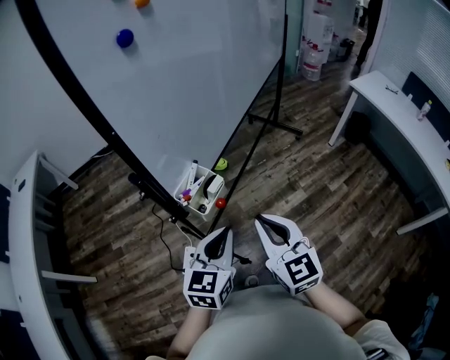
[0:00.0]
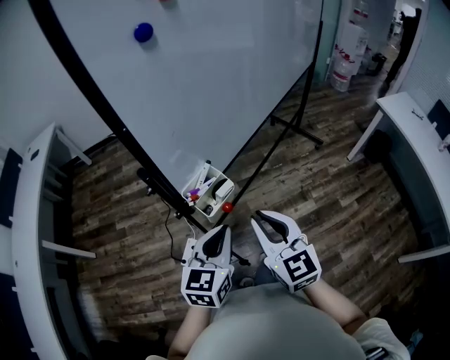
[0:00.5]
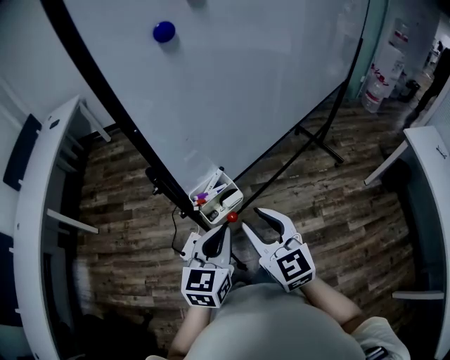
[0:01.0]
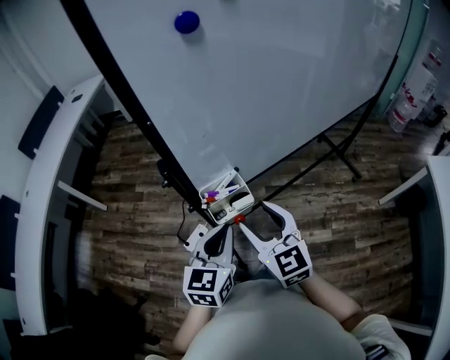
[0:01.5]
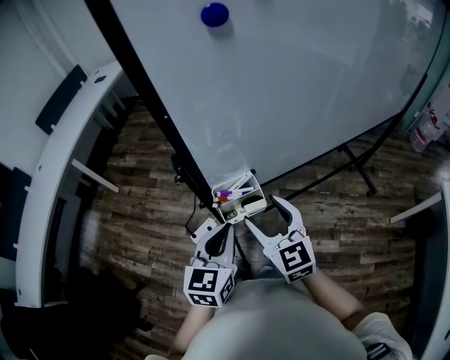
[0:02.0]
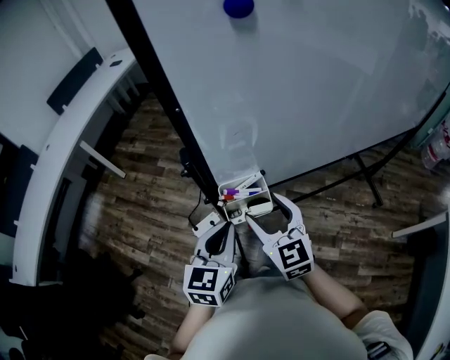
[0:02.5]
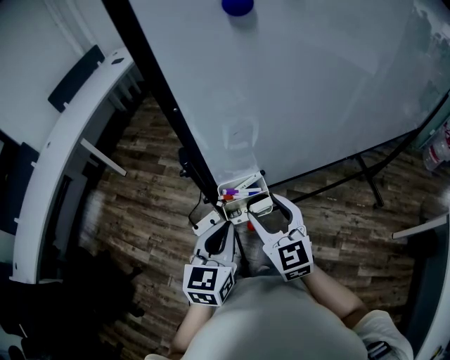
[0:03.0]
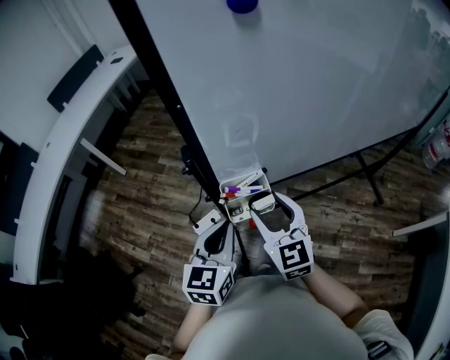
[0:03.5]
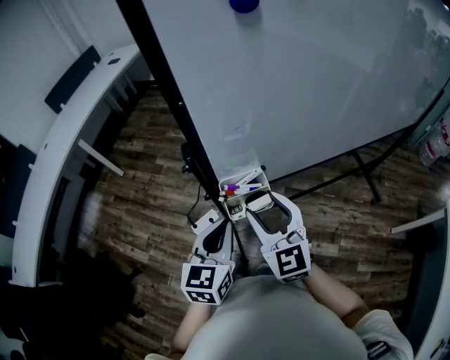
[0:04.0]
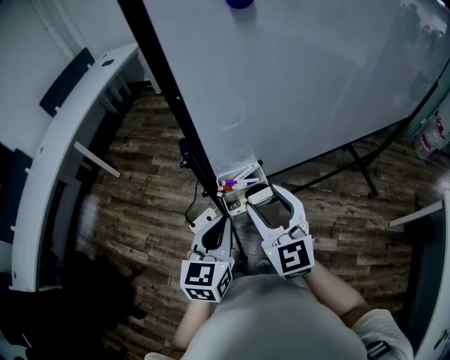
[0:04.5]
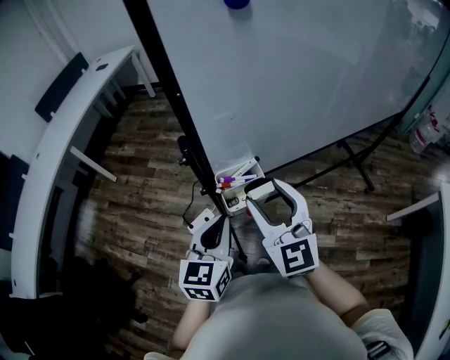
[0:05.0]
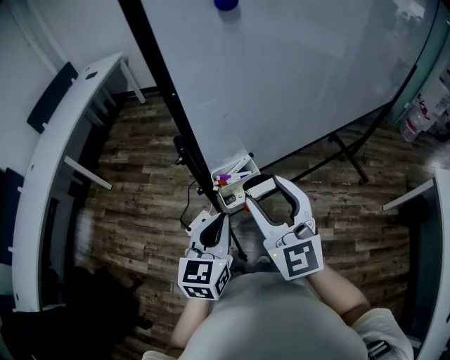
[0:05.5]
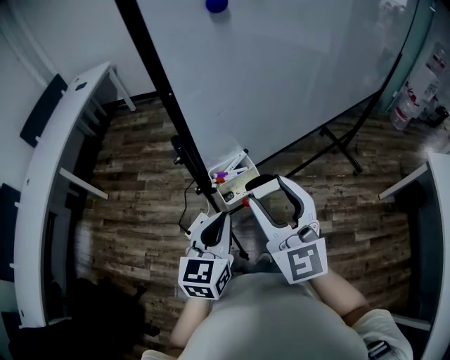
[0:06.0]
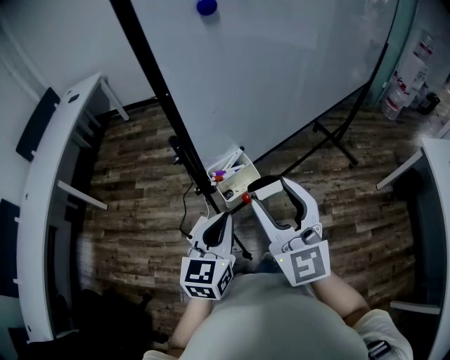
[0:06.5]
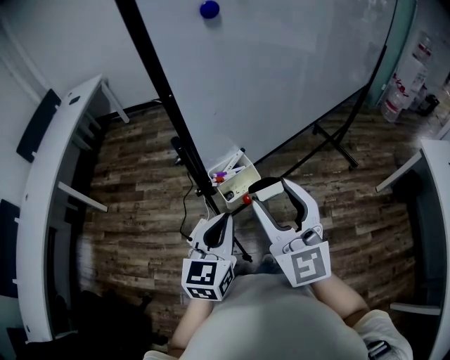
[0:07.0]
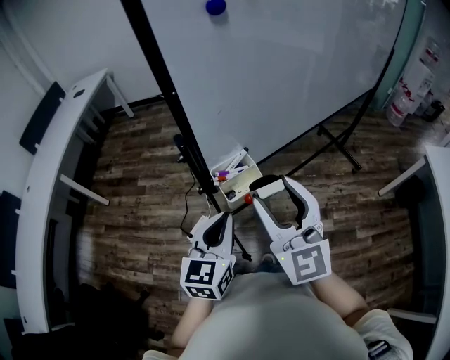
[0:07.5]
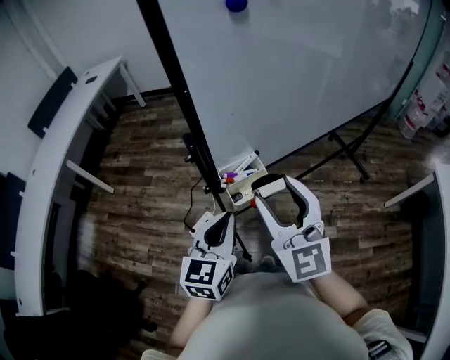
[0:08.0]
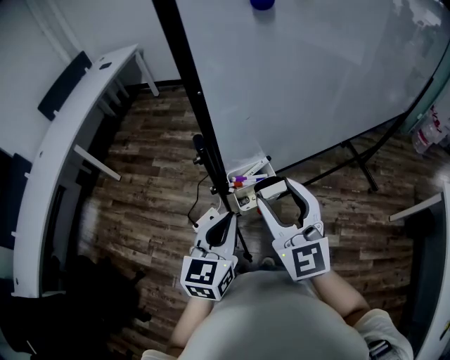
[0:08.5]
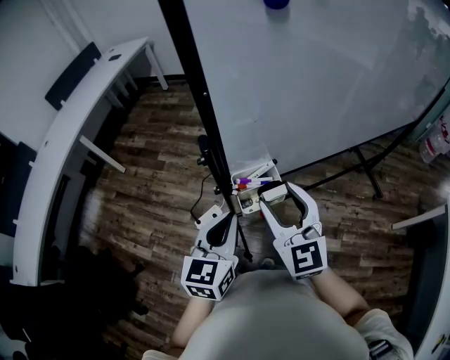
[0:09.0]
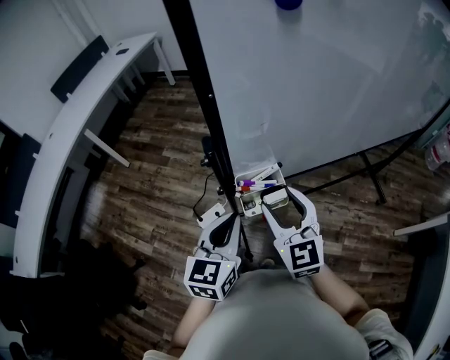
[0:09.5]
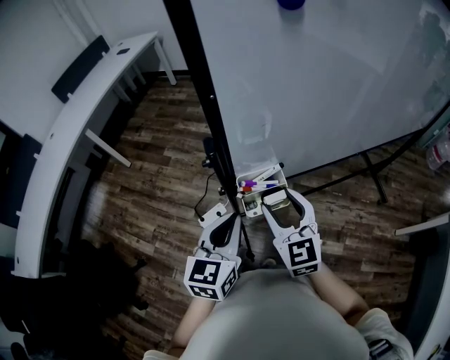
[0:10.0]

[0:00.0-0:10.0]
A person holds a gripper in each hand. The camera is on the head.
0:00.0 to 0:02.0: The left gripper moves some 10 cm, and changes its angle by roughly 40 degrees; the right gripper moves roughly 15 cm, rotates roughly 40 degrees, and opens its fingers.
0:02.0 to 0:04.0: The grippers move only a little.
0:04.0 to 0:06.0: The right gripper goes some 10 cm upward and backward.
0:06.0 to 0:08.0: The grippers make only small movements.
0:08.0 to 0:10.0: The right gripper heads downward and forward, covering approximately 15 cm, and turns by about 20 degrees.

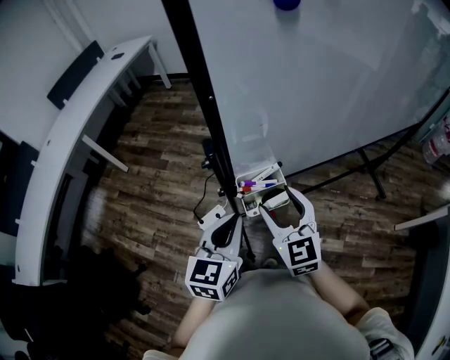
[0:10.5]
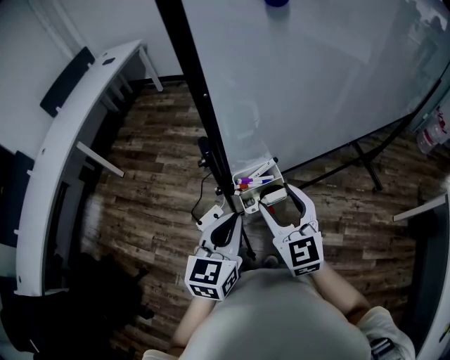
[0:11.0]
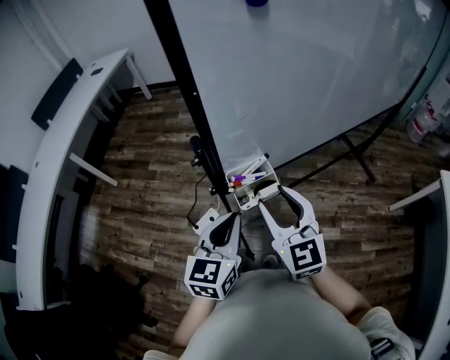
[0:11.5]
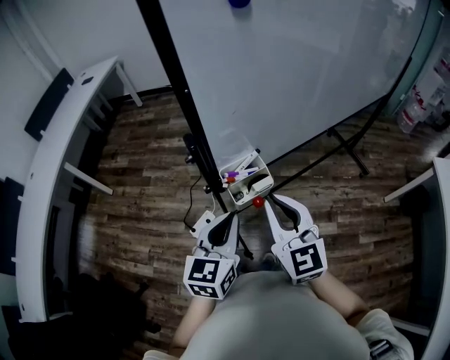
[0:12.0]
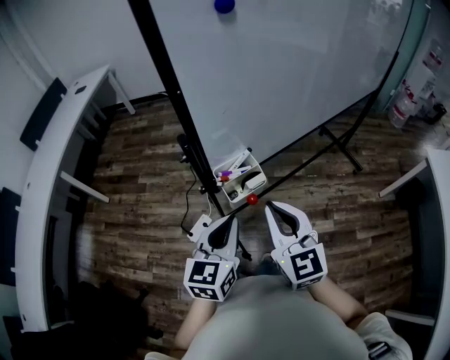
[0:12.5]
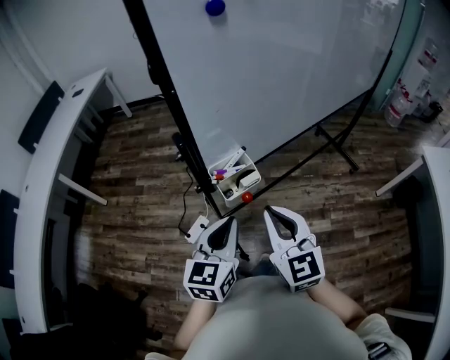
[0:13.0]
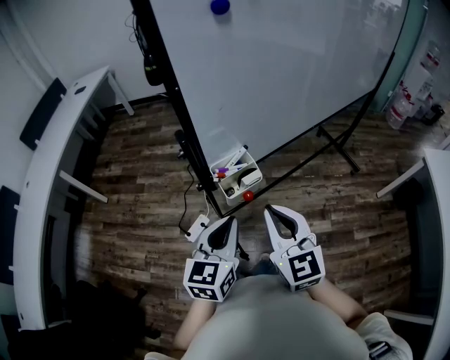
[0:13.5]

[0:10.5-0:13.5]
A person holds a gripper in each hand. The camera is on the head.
0:10.5 to 0:12.0: The right gripper shifts some 10 cm backward and upward, and closes up.
0:12.0 to 0:13.5: The right gripper moves approximately 5 cm.

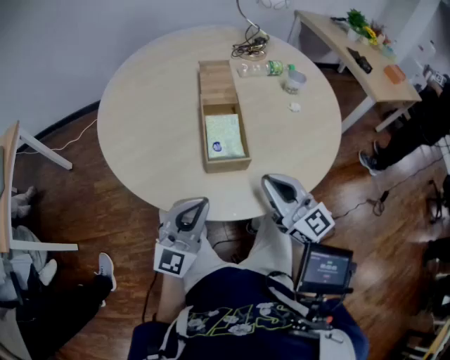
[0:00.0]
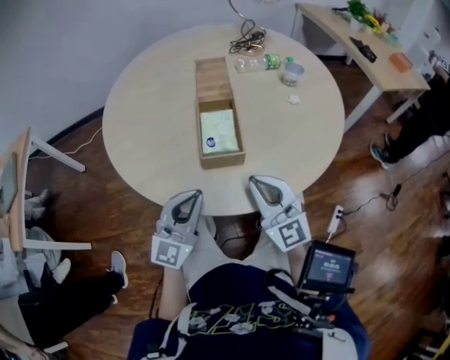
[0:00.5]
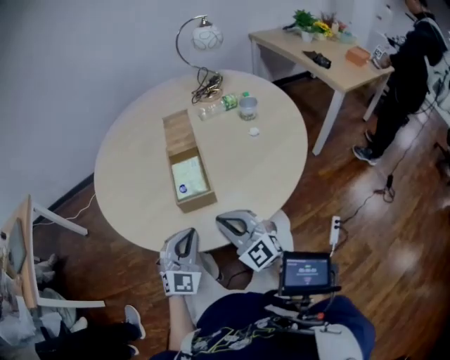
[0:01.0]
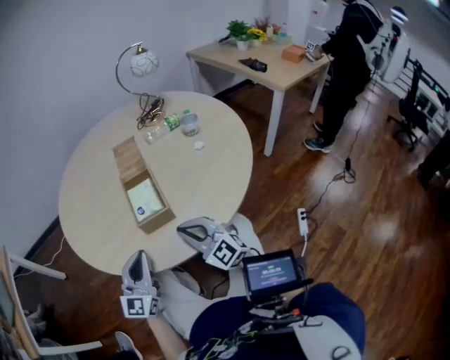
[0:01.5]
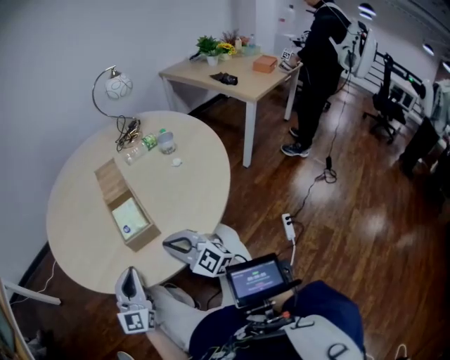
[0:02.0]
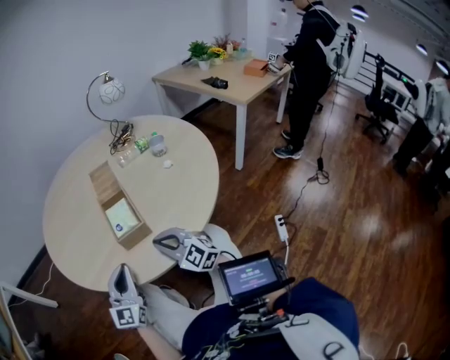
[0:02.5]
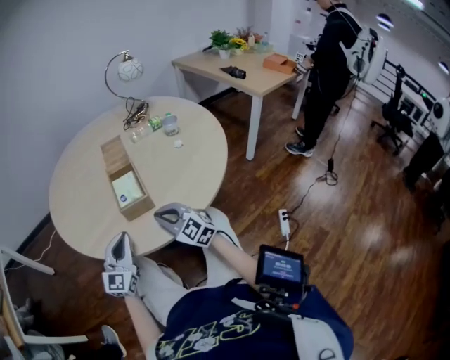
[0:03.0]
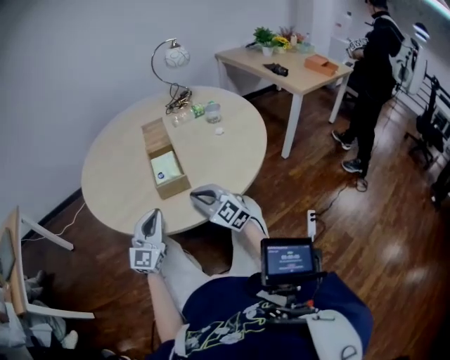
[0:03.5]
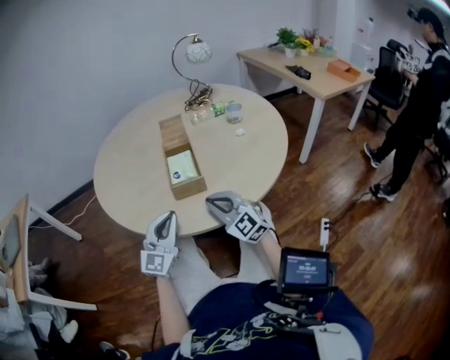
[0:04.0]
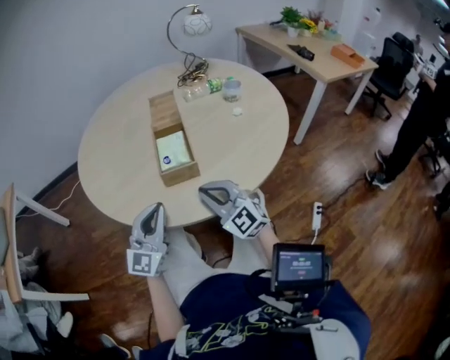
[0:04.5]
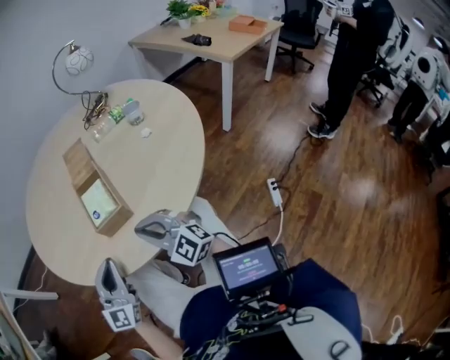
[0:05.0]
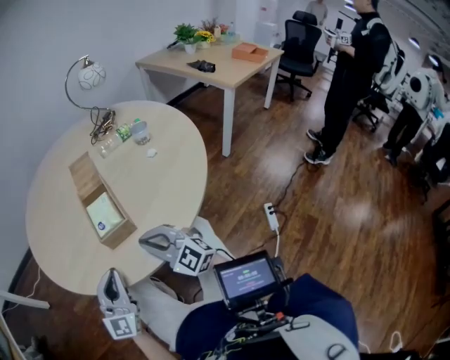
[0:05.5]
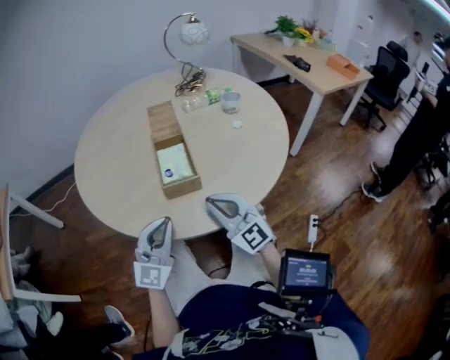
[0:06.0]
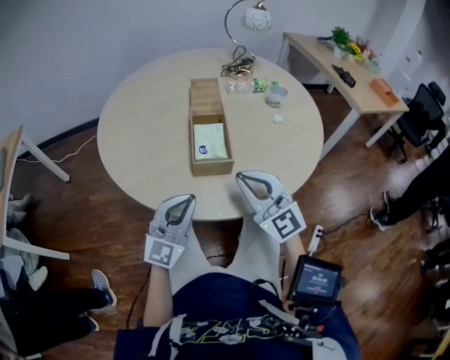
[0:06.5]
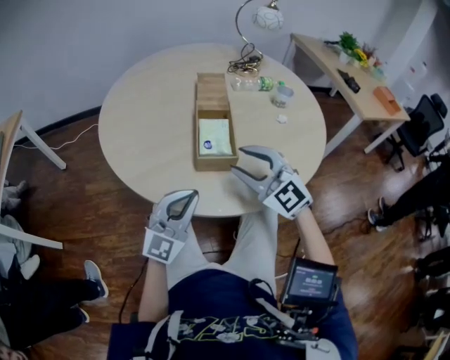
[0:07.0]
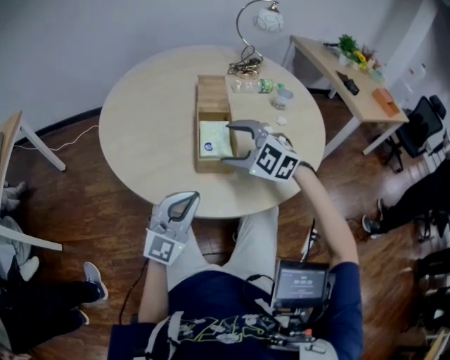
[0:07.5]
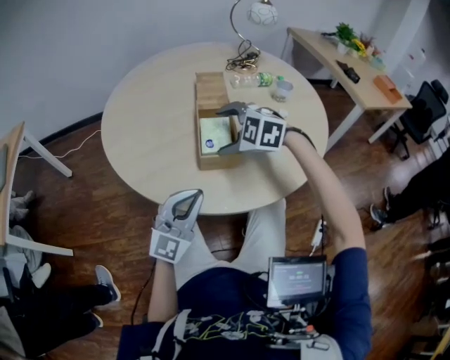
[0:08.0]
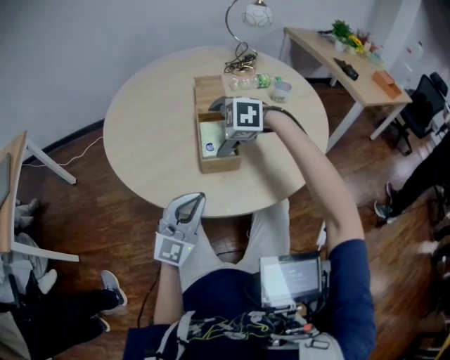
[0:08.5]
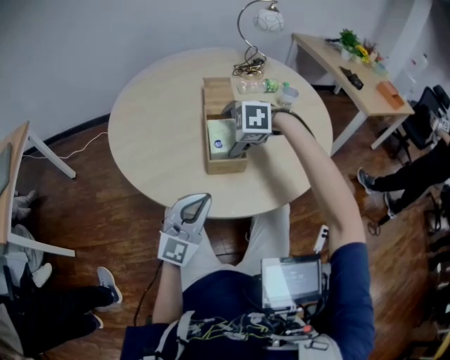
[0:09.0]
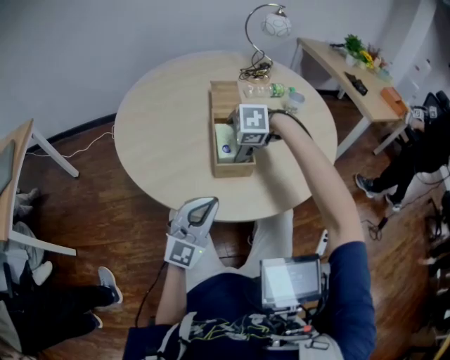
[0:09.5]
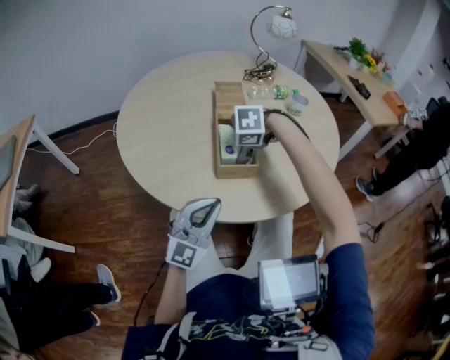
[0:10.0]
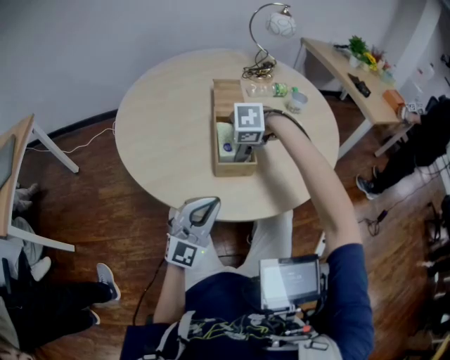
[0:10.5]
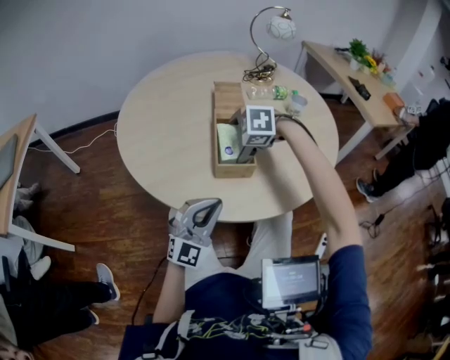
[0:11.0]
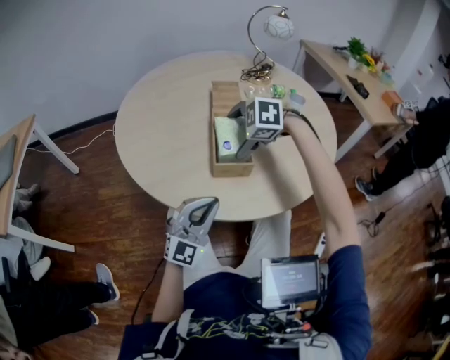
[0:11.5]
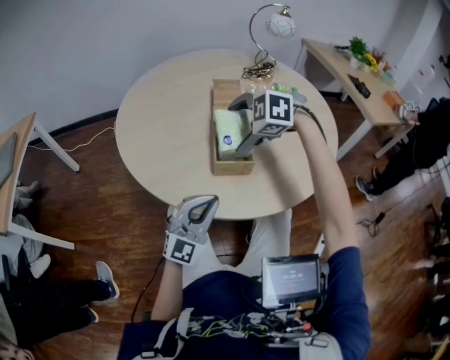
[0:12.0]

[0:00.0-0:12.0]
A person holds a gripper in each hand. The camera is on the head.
0:00.0 to 0:02.0: The right gripper moves downward, about 5 cm, and changes its angle by some 30 degrees.
0:02.0 to 0:06.0: There are only small adjustments of the grippers.
0:06.0 to 0:08.0: The right gripper travels forward and to the left by some 15 cm, tilts its fingers about 50 degrees downward, and opens up.
0:08.0 to 0:10.0: The right gripper is displaced downward by some 5 cm, and tips its fingers downward by some 30 degrees.
0:10.0 to 0:12.0: The right gripper goes roughly 10 cm upward, and swivels approximately 20 degrees.

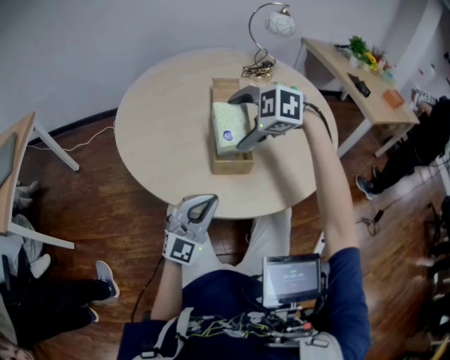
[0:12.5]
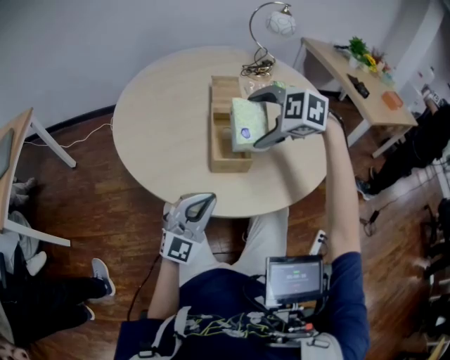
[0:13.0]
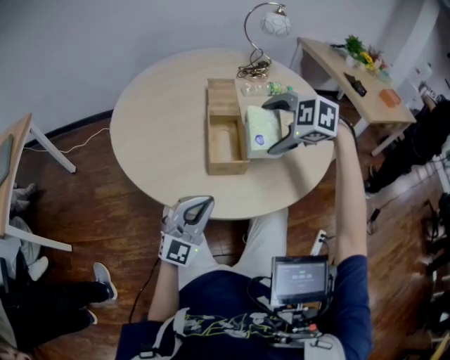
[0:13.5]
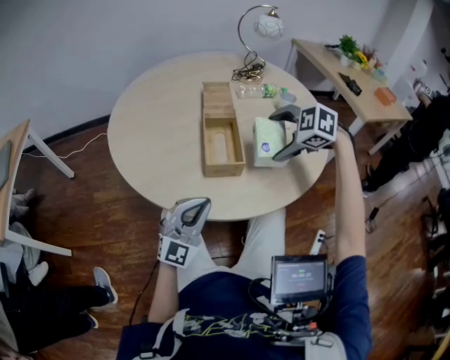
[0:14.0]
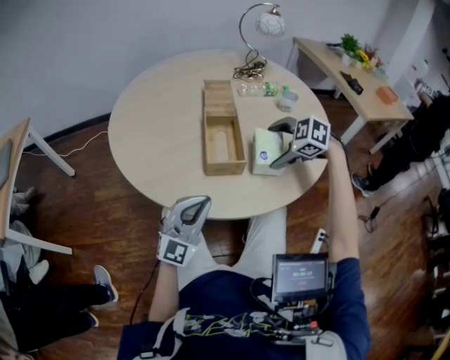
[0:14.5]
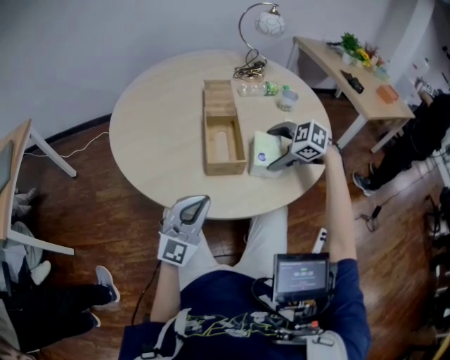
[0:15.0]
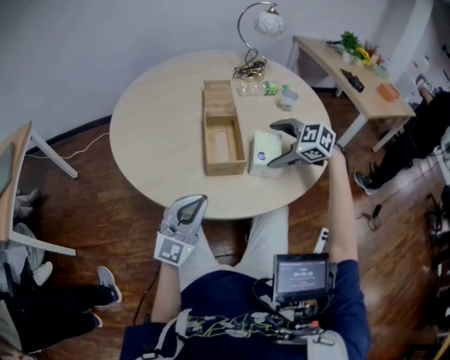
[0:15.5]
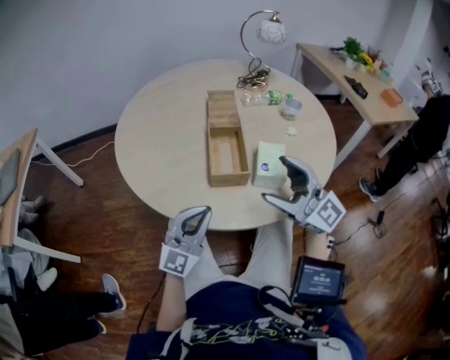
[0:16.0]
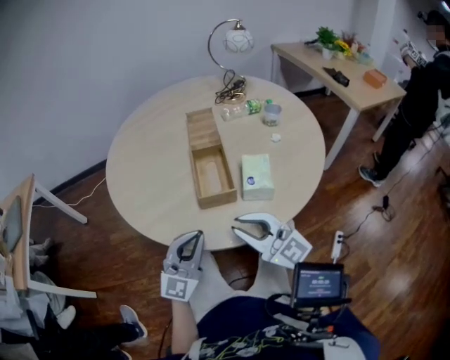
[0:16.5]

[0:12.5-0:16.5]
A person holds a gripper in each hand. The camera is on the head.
0:12.5 to 0:14.5: The right gripper heads to the right and downward, covering some 15 cm.
0:14.5 to 0:16.5: The right gripper goes roughly 15 cm backward and to the left, angles its fingers upward, by some 60 degrees, and closes up.
